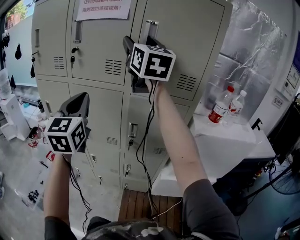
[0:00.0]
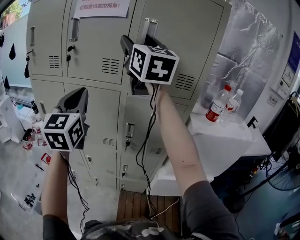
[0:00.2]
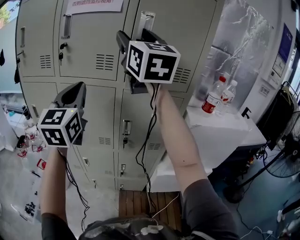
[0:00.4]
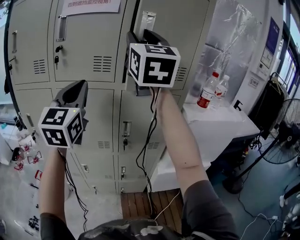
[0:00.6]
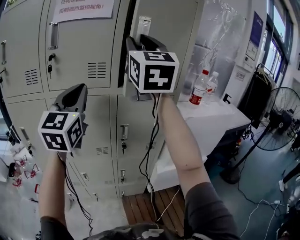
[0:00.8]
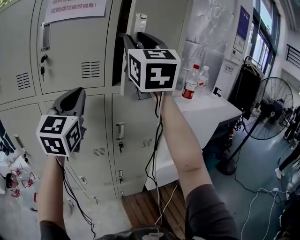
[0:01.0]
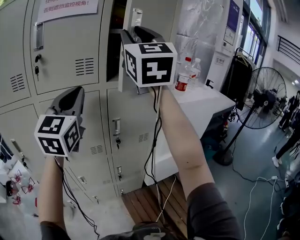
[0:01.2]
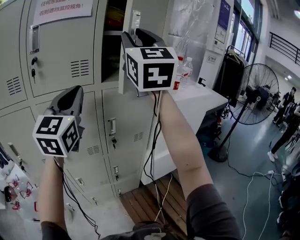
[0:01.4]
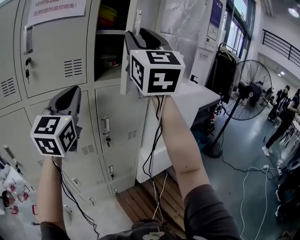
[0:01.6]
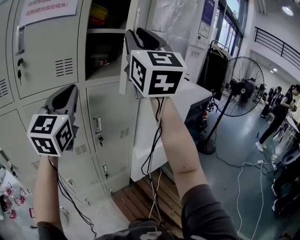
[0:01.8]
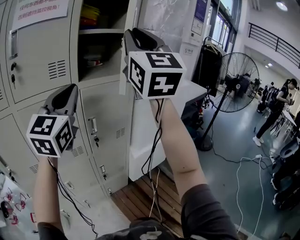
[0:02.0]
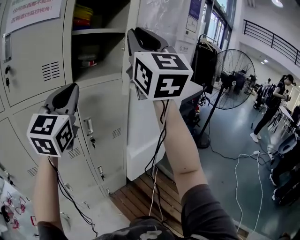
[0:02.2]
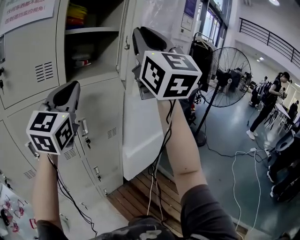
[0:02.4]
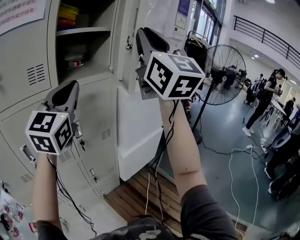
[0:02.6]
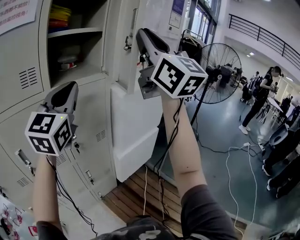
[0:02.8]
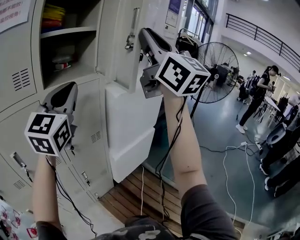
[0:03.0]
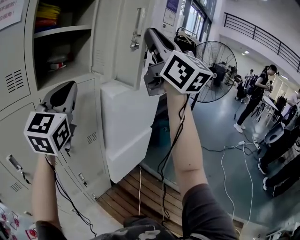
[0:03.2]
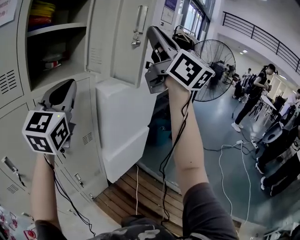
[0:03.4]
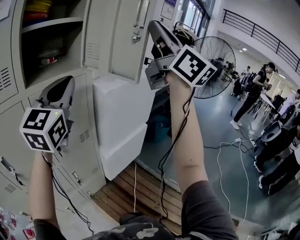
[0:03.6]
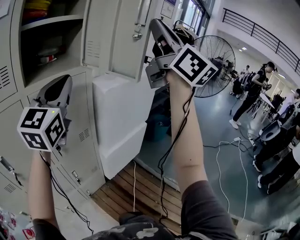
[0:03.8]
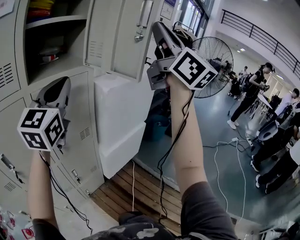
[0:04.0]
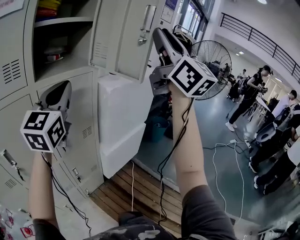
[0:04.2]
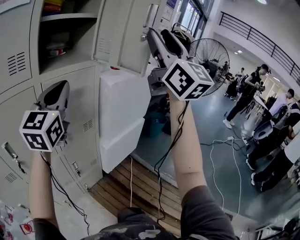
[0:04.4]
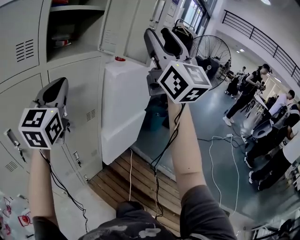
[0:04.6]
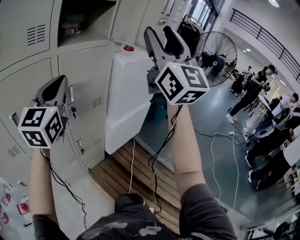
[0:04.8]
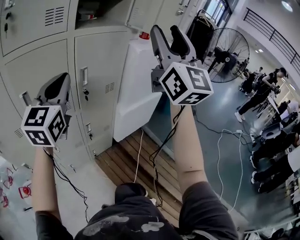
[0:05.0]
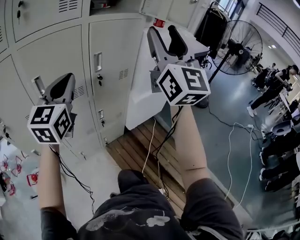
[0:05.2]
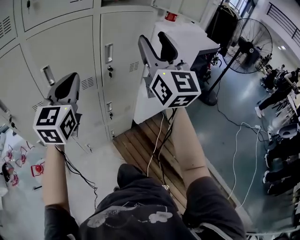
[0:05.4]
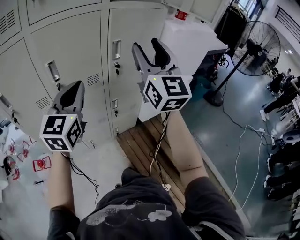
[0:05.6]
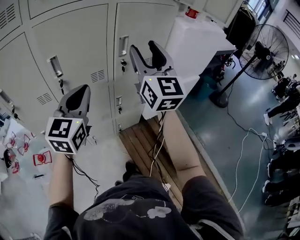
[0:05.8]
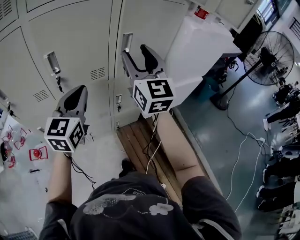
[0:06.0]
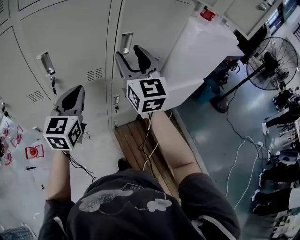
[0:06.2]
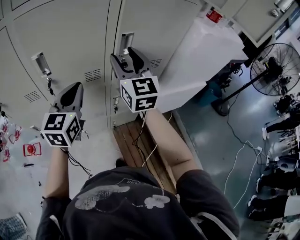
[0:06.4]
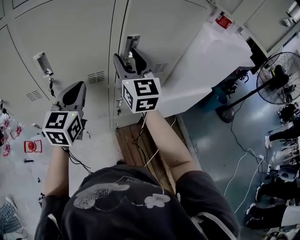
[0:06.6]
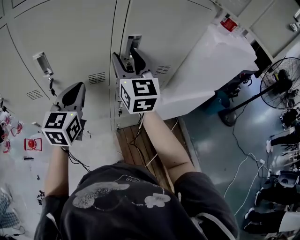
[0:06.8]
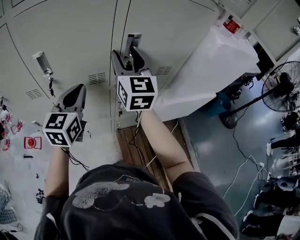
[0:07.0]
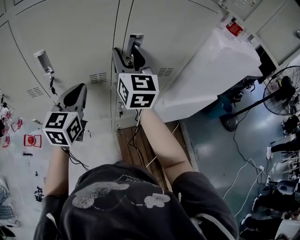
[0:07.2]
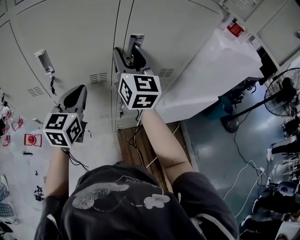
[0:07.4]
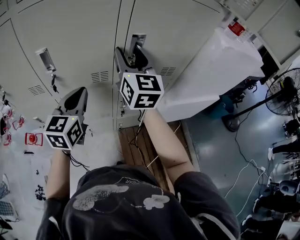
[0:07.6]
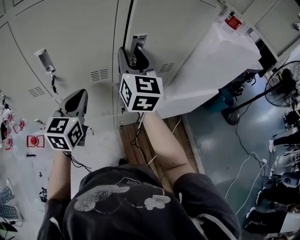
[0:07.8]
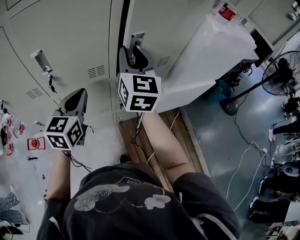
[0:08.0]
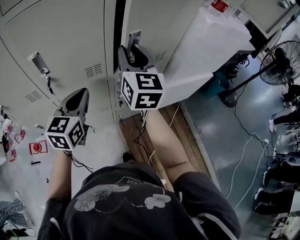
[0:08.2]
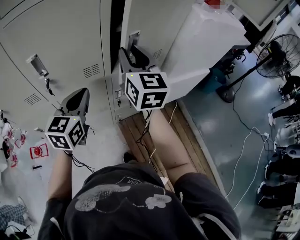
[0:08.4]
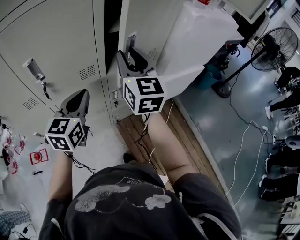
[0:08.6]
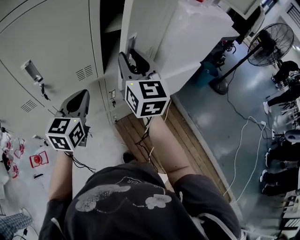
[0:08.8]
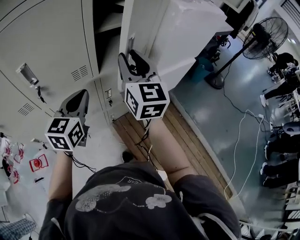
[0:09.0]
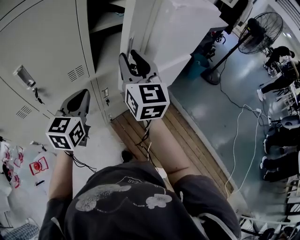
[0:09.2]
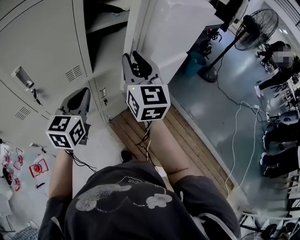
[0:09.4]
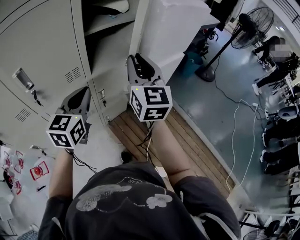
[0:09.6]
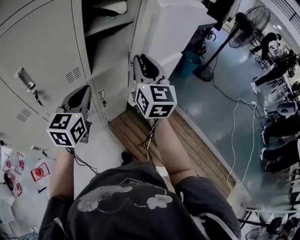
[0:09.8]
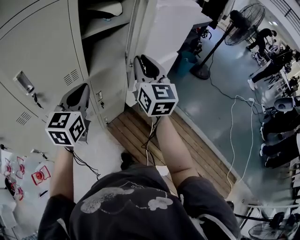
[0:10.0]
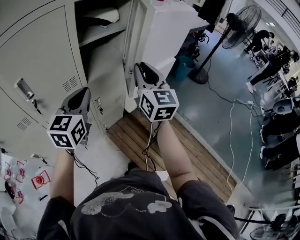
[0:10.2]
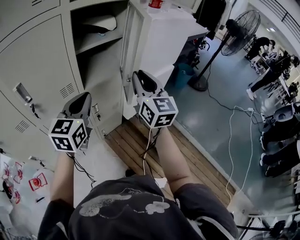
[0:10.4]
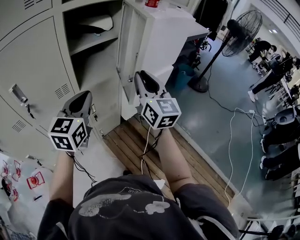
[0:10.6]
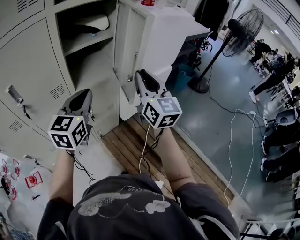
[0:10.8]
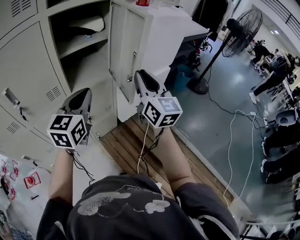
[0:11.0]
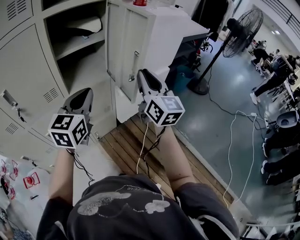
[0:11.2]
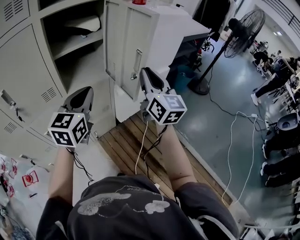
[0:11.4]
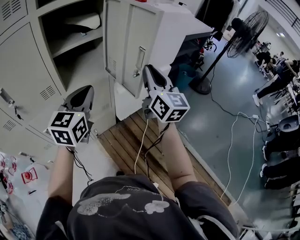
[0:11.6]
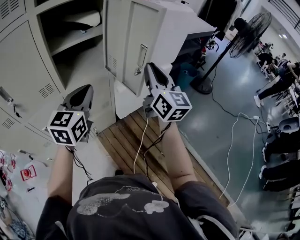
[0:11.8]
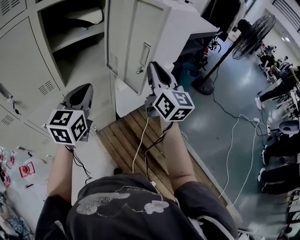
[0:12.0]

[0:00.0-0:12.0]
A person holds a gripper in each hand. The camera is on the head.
0:00.0 to 0:01.6: The left gripper swivels roughly 40 degrees, while the right gripper moves about 15 cm, changes its angle by some 40 degrees, and closes up.
0:01.6 to 0:03.0: The grippers both shift to the right by some 15 cm.
0:03.0 to 0:04.4: The right gripper opens up. Meanwhile the left gripper moves roughly 5 cm.
0:04.4 to 0:06.0: The grippers both shift downward and to the left by roughly 40 cm. The left gripper swivels approximately 30 degrees. The right gripper changes its angle by about 30 degrees.
0:06.0 to 0:07.6: Both grippers travel together forward and downward, roughly 10 cm.
0:07.6 to 0:09.0: The left gripper heads to the right, covering approximately 5 cm, and changes its angle by about 20 degrees, while the right gripper is displaced backward and to the right by roughly 15 cm.
0:09.0 to 0:10.4: The right gripper moves to the right, roughly 10 cm. The left gripper shifts approximately 10 cm to the right and upward.
0:10.4 to 0:12.0: Both grippers move to the right and forward, roughly 15 cm.

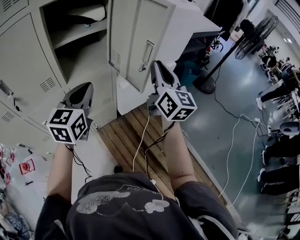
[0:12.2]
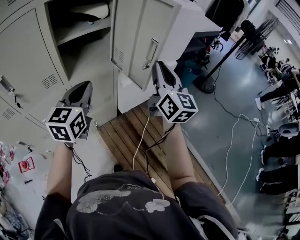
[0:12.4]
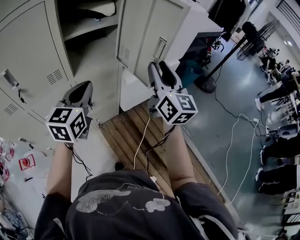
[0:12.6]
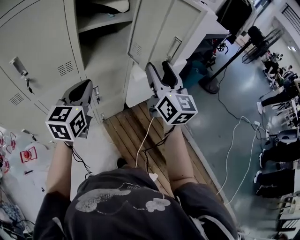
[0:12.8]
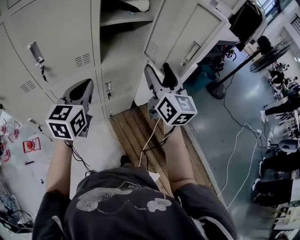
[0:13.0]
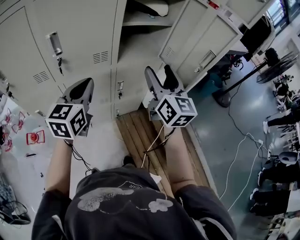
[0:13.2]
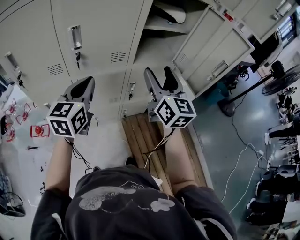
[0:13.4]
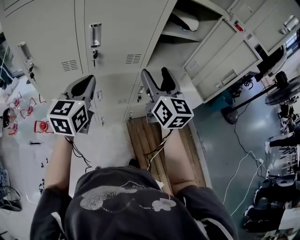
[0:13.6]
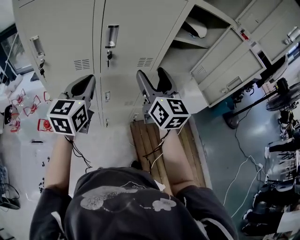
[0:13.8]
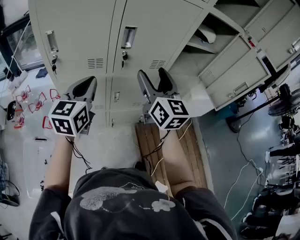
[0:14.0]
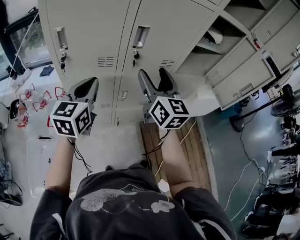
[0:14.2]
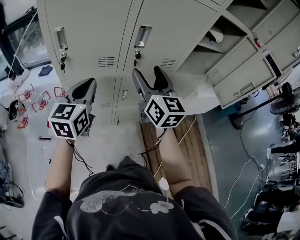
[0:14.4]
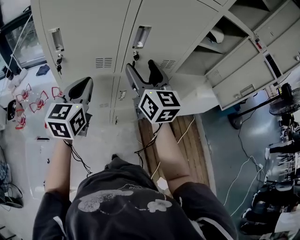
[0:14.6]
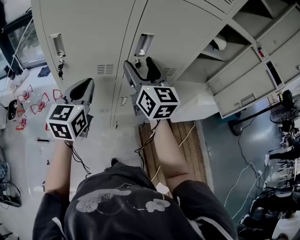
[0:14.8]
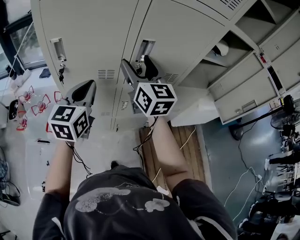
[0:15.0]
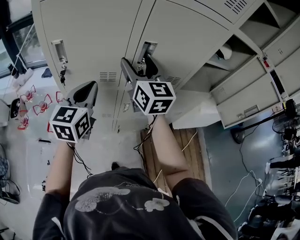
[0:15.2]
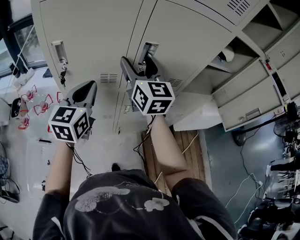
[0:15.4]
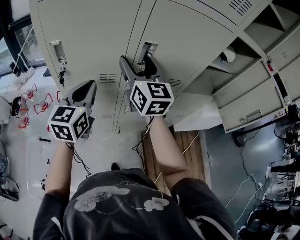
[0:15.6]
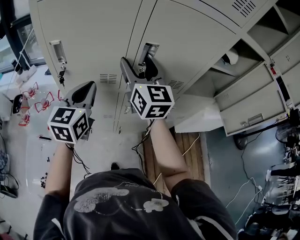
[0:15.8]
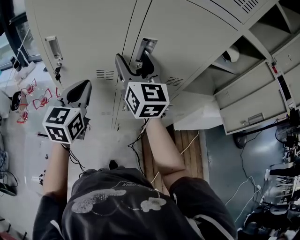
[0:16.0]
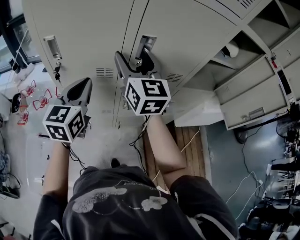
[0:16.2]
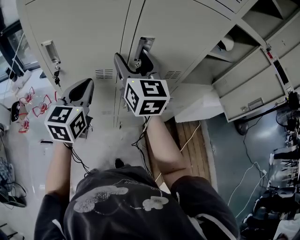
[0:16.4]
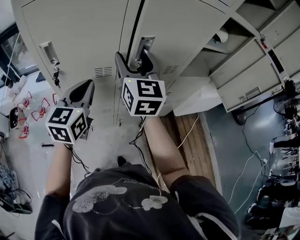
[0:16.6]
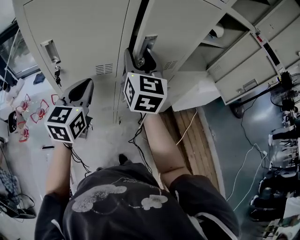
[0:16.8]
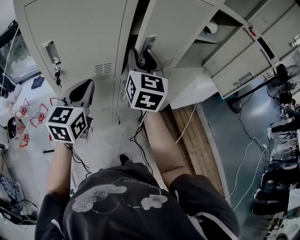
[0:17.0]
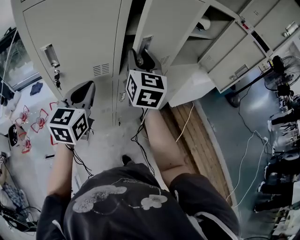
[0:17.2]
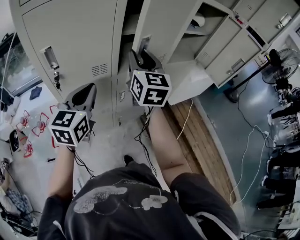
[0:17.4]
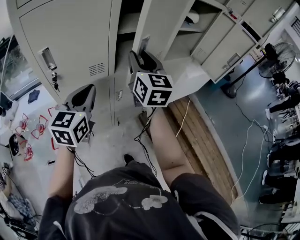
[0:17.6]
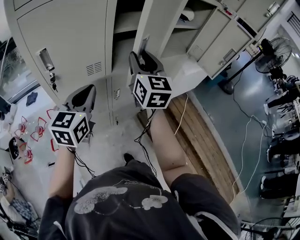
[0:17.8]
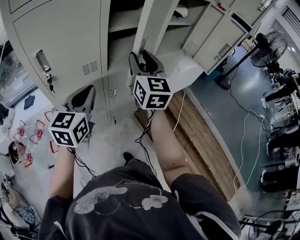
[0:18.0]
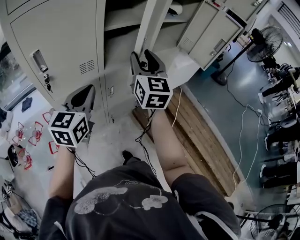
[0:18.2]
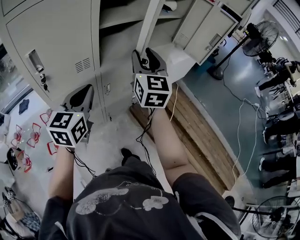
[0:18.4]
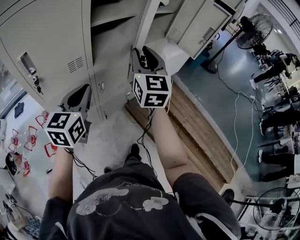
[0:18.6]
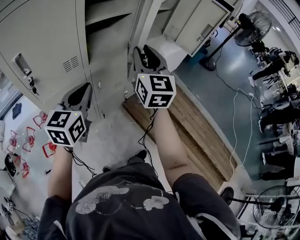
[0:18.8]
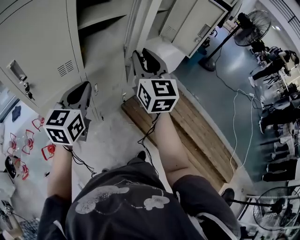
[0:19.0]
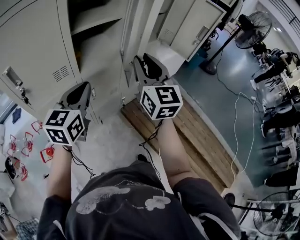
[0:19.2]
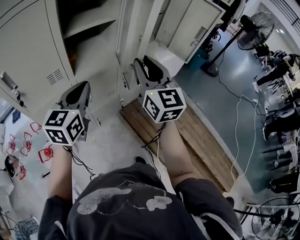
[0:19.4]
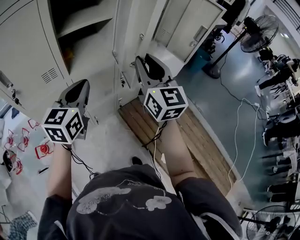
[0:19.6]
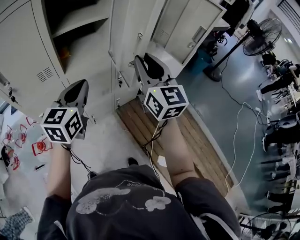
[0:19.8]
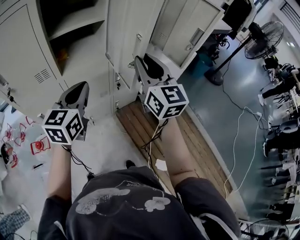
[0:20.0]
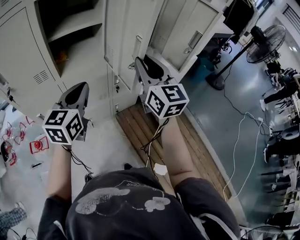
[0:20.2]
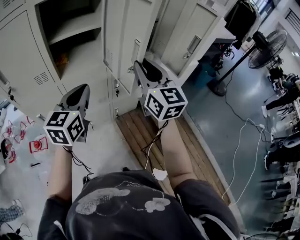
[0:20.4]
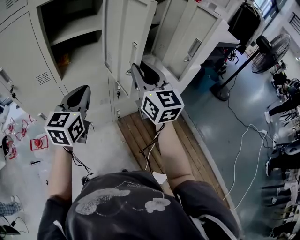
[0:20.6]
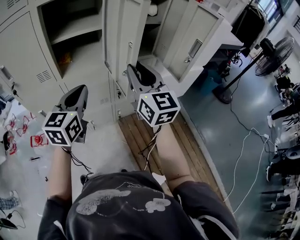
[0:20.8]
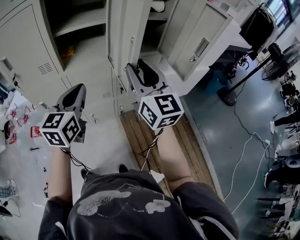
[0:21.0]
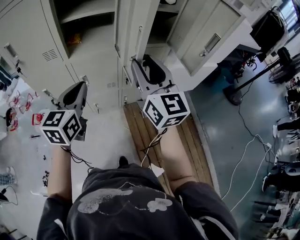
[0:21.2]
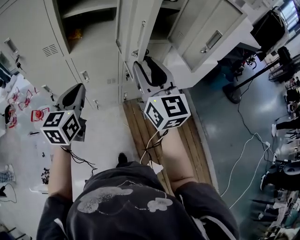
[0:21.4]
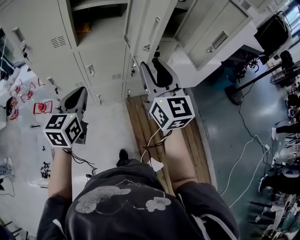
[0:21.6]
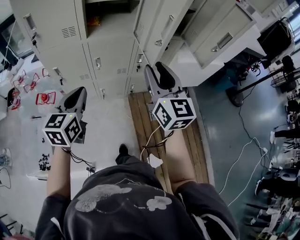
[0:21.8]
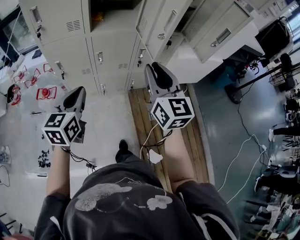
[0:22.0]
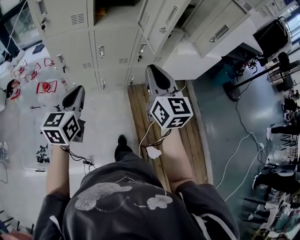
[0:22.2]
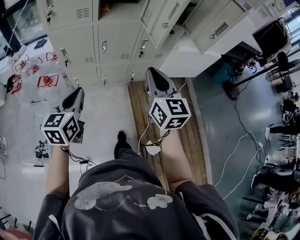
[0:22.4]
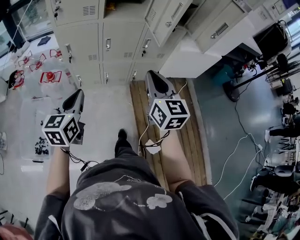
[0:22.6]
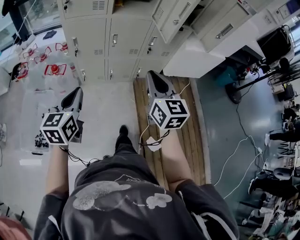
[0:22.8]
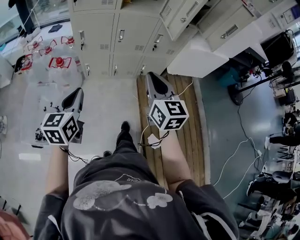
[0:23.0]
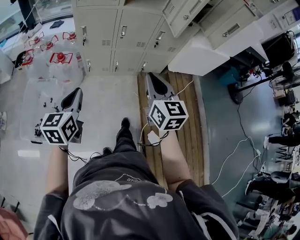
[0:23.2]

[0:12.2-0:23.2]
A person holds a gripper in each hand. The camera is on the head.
0:12.2 to 0:13.8: The pair of grippers is taken to the left, some 40 cm. The right gripper swivels about 20 degrees, and opens up; the left gripper turns by approximately 20 degrees.
0:13.8 to 0:15.4: The right gripper moves to the left and forward, roughly 20 cm, while the left gripper travels to the left and forward by about 10 cm.
0:15.4 to 0:17.0: The right gripper changes place by approximately 5 cm, rotates approximately 30 degrees, and closes up.
0:17.0 to 0:18.4: The left gripper is displaced to the right and backward by about 10 cm. The right gripper moves to the right and backward, approximately 15 cm.
0:18.4 to 0:20.0: The grippers both shift to the right by approximately 20 cm.
0:20.0 to 0:21.6: The left gripper heads backward and downward, covering about 10 cm, and turns by some 20 degrees. Meanwhile the right gripper moves some 5 cm.
0:21.6 to 0:23.2: The two grippers go some 30 cm backward and to the left. The right gripper closes up.

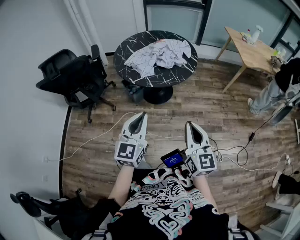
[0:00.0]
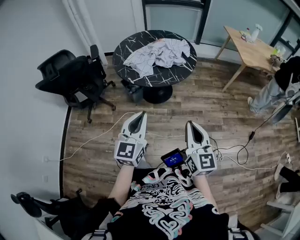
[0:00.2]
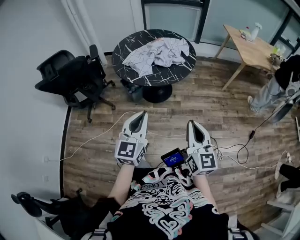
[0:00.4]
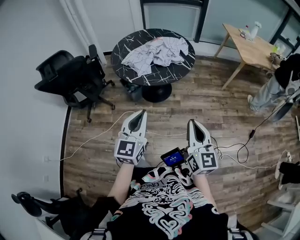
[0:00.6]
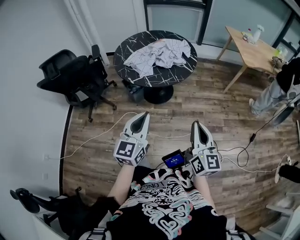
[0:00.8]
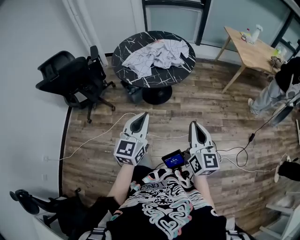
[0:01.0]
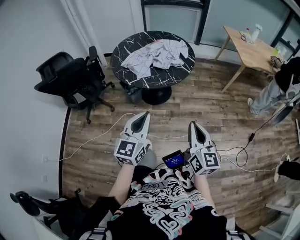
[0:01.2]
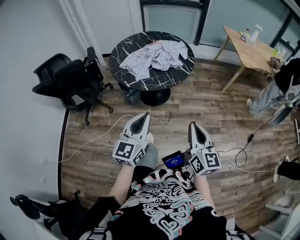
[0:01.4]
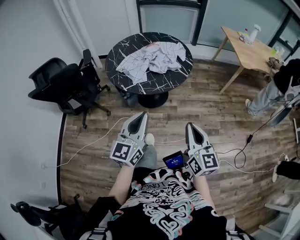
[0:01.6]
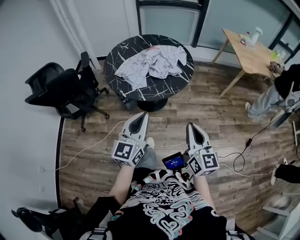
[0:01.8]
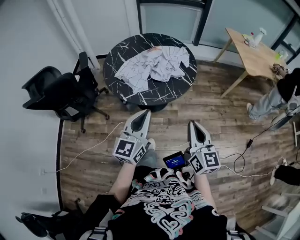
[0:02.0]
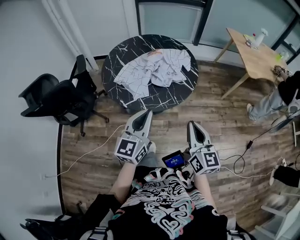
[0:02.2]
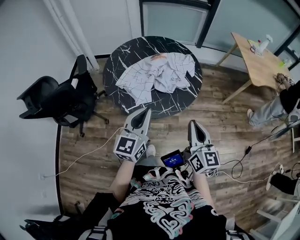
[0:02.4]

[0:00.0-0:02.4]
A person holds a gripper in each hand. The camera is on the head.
0:00.0 to 0:01.2: The right gripper goes about 5 cm to the right.
0:01.2 to 0:02.4: Both grippers move forward, about 25 cm.
